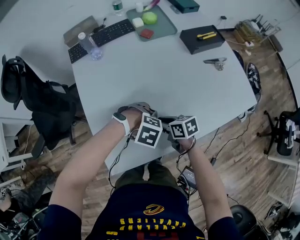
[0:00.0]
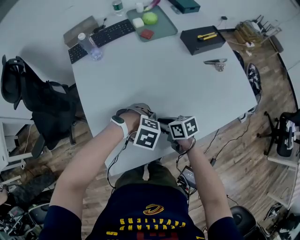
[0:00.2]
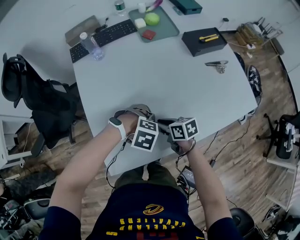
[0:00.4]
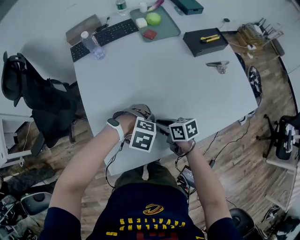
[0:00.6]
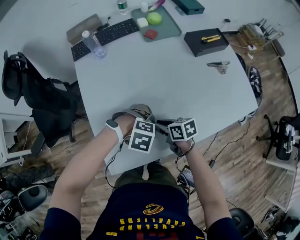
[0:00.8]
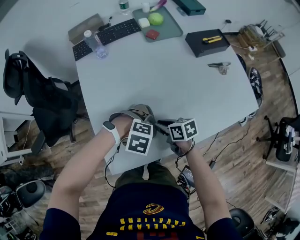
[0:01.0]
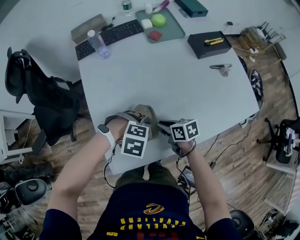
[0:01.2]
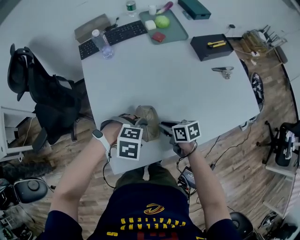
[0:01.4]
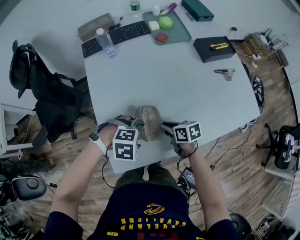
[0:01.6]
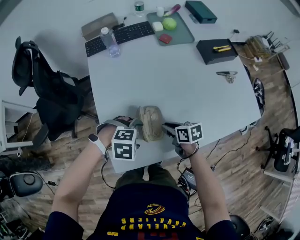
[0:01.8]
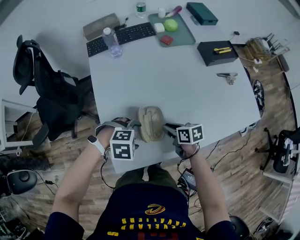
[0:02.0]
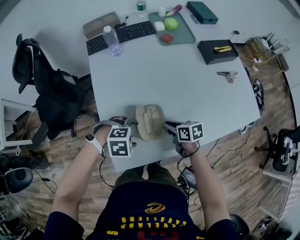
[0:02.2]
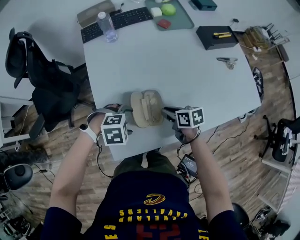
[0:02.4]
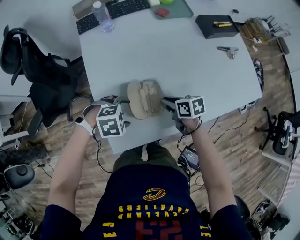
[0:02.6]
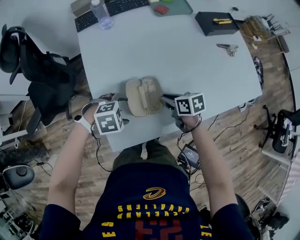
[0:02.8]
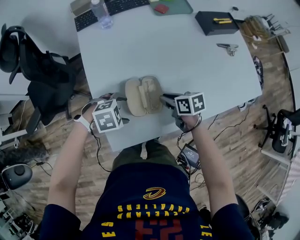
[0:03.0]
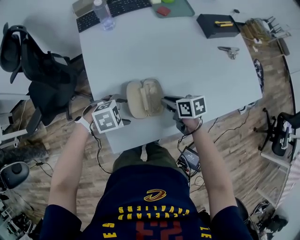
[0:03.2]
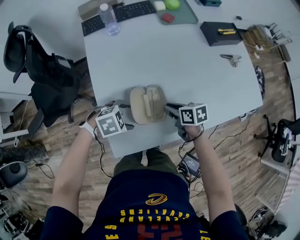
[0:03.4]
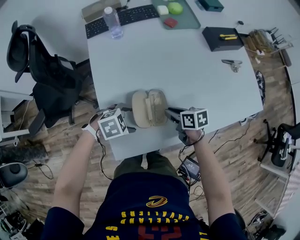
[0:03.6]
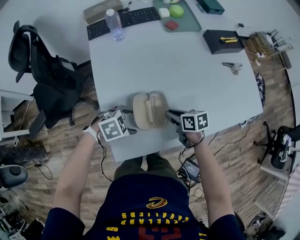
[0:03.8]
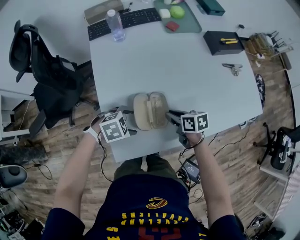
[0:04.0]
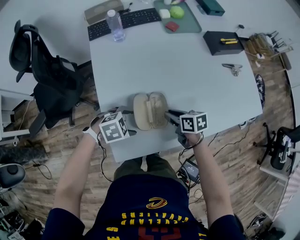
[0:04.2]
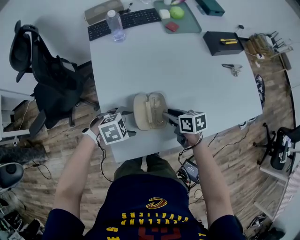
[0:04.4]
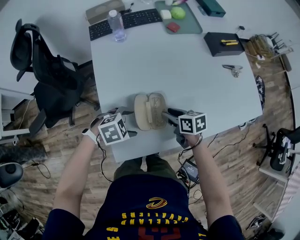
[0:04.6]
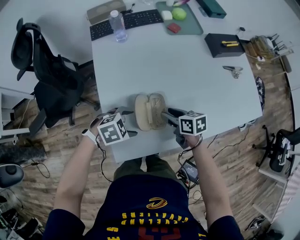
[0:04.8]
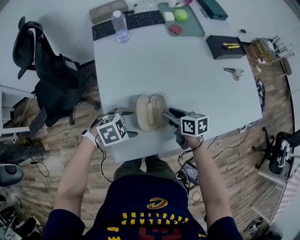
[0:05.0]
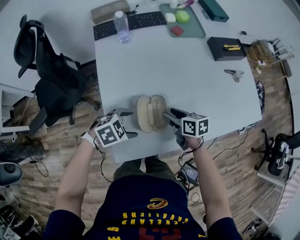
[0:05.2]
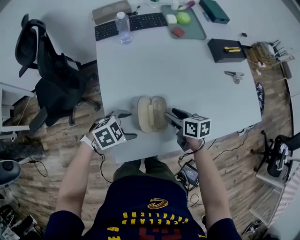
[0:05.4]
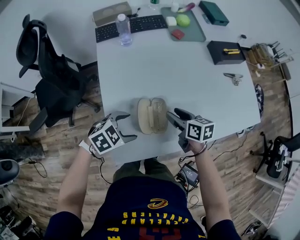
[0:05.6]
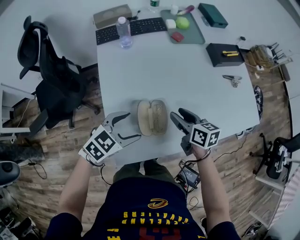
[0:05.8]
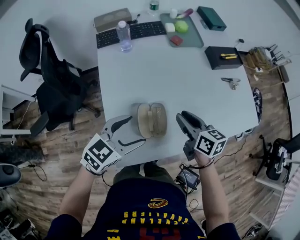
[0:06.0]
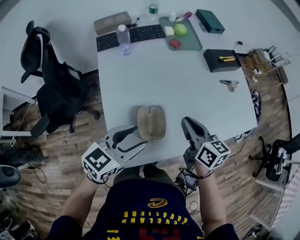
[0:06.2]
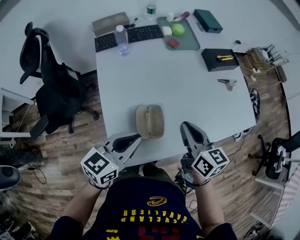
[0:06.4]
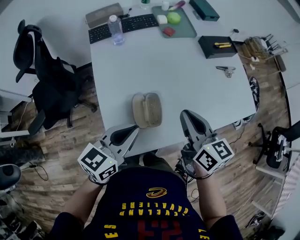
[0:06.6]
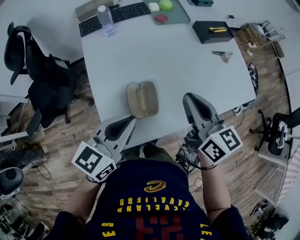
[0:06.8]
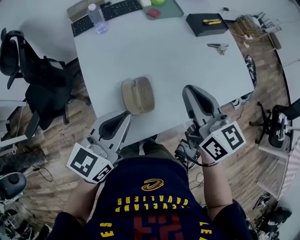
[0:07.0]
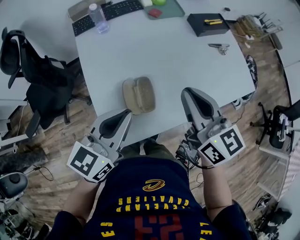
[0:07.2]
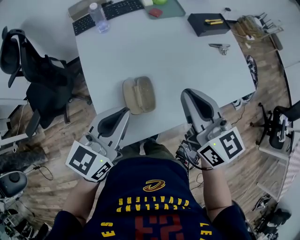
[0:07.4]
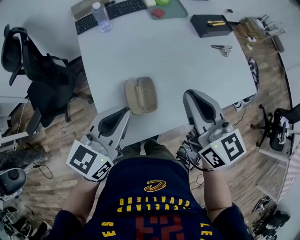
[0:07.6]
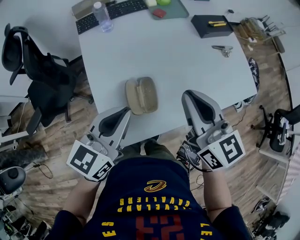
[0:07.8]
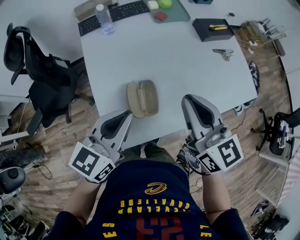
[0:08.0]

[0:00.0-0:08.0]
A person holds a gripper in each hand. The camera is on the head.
0.0 to 1.6 s: The left gripper ends up roughly 10 cm from where it was, and rotates roughly 20 degrees.
1.6 to 3.2 s: The left gripper moves approximately 10 cm, and turns by approximately 20 degrees.
3.2 to 4.8 s: The right gripper opens up.
4.8 to 6.4 s: The two grippers go roughly 20 cm upward. The left gripper angles its fingers upward, by approximately 50 degrees, and closes, while the right gripper turns by approximately 30 degrees, and closes.
6.4 to 8.0 s: The right gripper travels upward by approximately 10 cm, and rotates some 20 degrees.

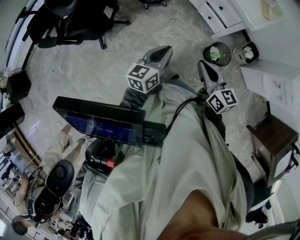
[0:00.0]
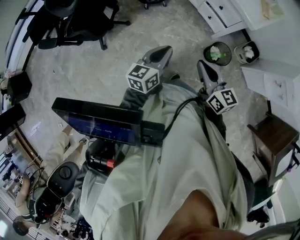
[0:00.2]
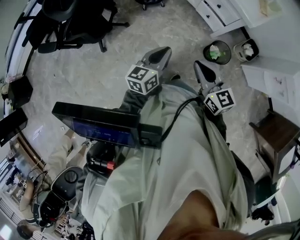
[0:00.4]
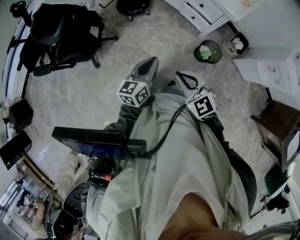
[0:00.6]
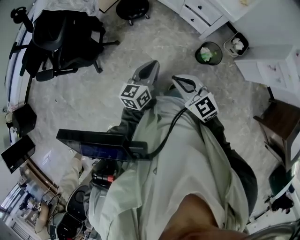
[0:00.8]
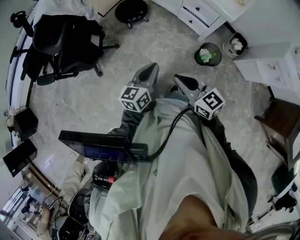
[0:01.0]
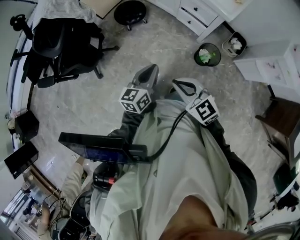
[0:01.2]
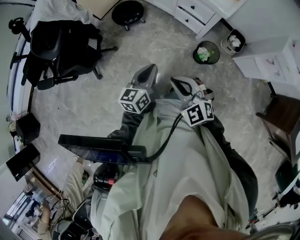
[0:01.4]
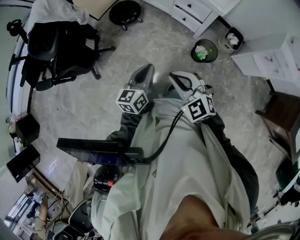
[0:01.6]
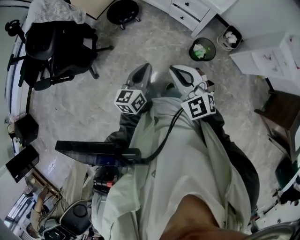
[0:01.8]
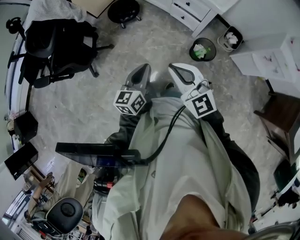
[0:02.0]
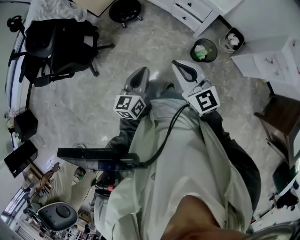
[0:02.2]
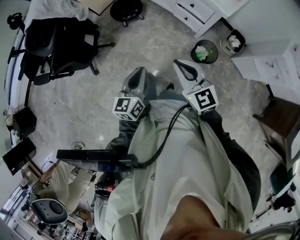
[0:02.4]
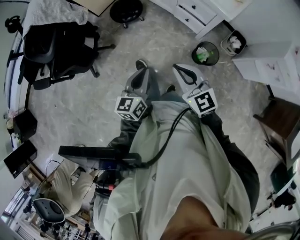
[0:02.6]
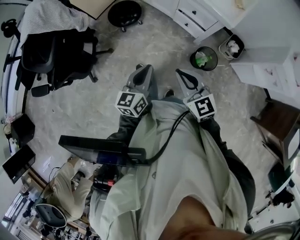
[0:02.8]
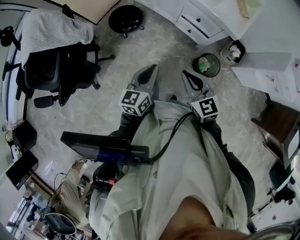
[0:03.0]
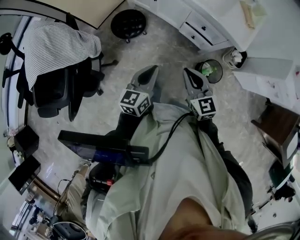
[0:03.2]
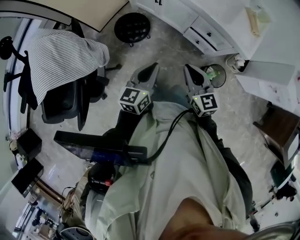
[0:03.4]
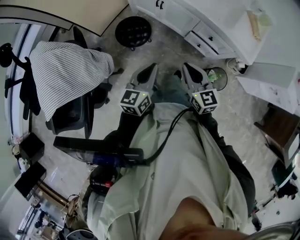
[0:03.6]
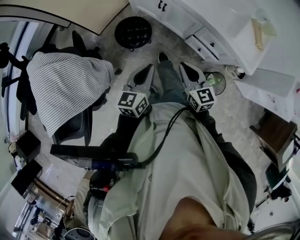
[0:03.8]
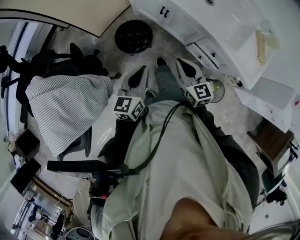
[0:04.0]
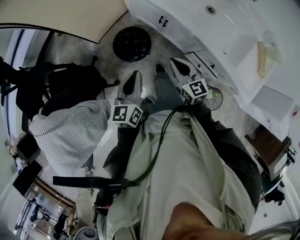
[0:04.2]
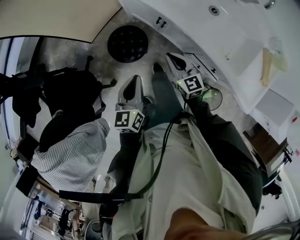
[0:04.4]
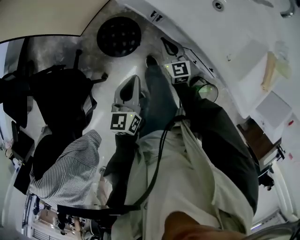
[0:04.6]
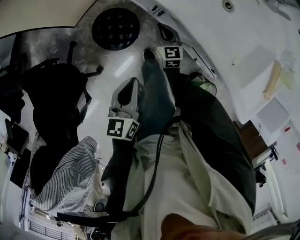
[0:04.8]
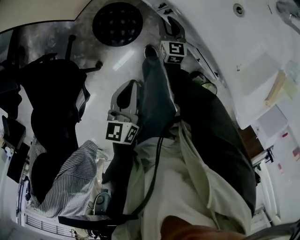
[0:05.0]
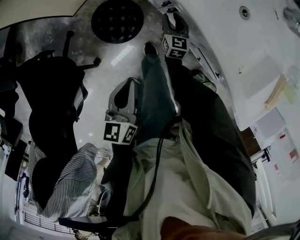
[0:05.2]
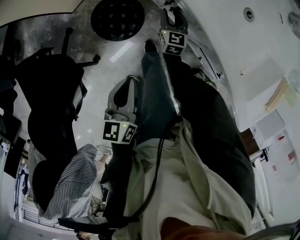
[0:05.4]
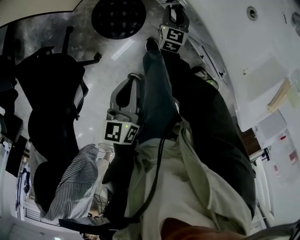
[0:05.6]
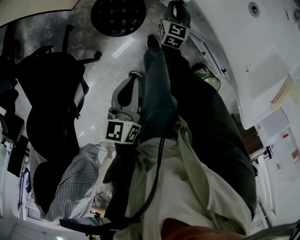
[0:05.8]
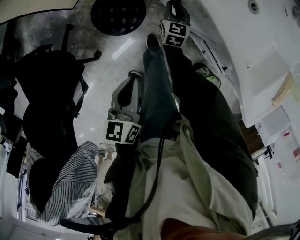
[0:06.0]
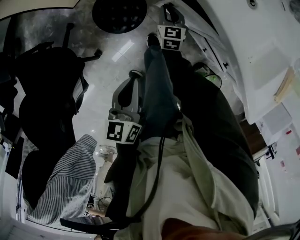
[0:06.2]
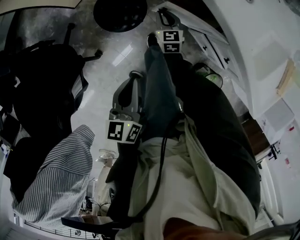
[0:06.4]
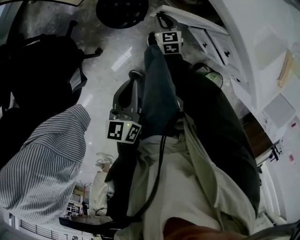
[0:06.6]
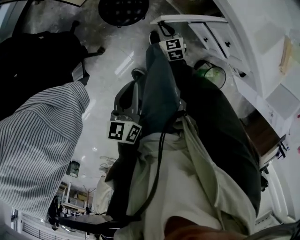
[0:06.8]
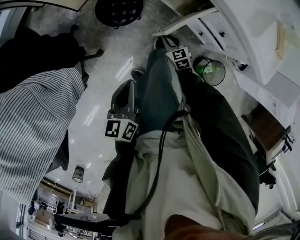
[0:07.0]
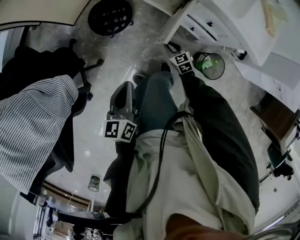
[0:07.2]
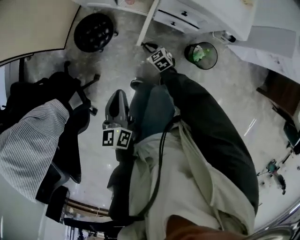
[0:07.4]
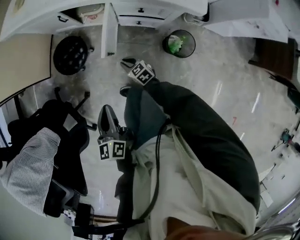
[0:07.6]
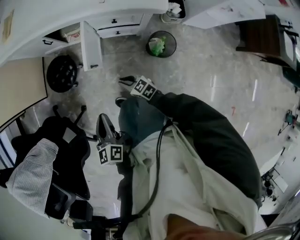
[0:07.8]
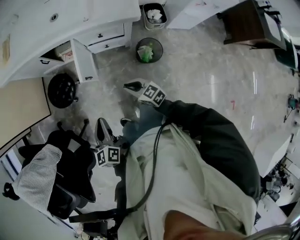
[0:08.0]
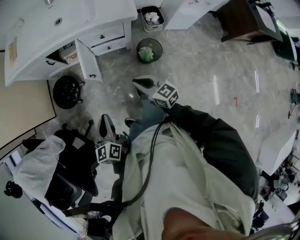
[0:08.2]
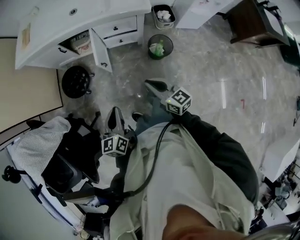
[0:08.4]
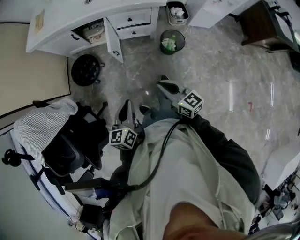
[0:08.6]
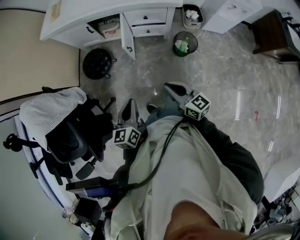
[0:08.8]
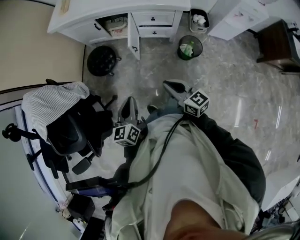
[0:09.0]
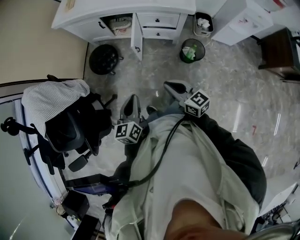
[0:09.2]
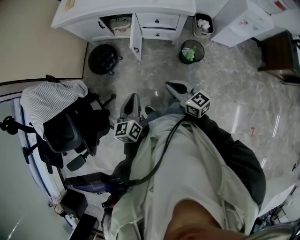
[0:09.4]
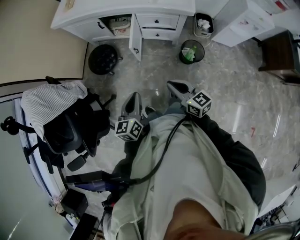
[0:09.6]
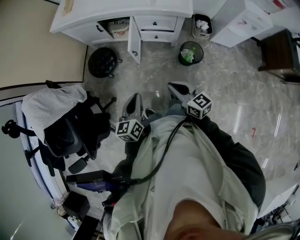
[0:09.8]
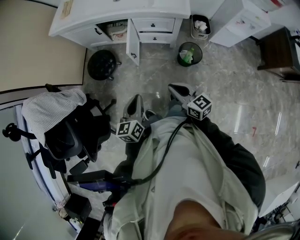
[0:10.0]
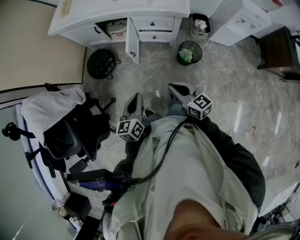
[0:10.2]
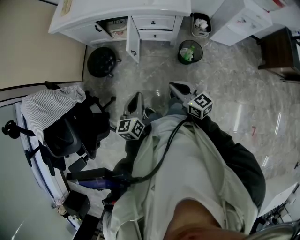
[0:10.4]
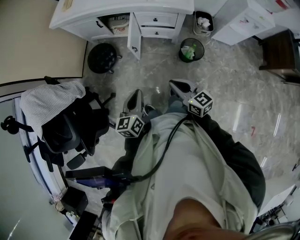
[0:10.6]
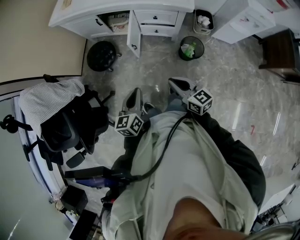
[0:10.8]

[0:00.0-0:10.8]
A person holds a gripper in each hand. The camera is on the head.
0.0 to 1.6 s: The right gripper heads to the left, covering approximately 5 cm, and twists some 50 degrees counterclockwise, seen from behind.
1.6 to 3.0 s: Both grippers travel together forward, about 15 cm. The right gripper turns by roughly 30 degrees.
3.0 to 4.6 s: Both grippers are carried forward, about 50 cm. The right gripper goes roughly 25 cm downward.
4.6 to 6.2 s: The left gripper travels backward by about 5 cm. Meanwhile the right gripper is displaced downward by roughly 15 cm, and opens, then closes once more.
6.2 to 7.8 s: The left gripper moves backward, approximately 30 cm, and changes its angle by roughly 20 degrees, while the right gripper moves backward, about 50 cm, and swivels about 20 degrees.
7.8 to 9.2 s: The left gripper shifts roughly 15 cm backward and upward. The right gripper shifts some 30 cm upward and backward, and changes its angle by roughly 20 degrees.
9.2 to 10.8 s: The right gripper moves approximately 5 cm, while the left gripper moves approximately 5 cm.

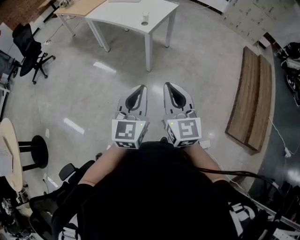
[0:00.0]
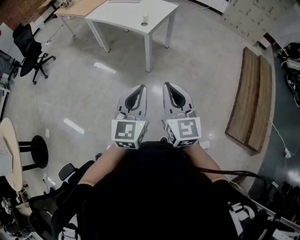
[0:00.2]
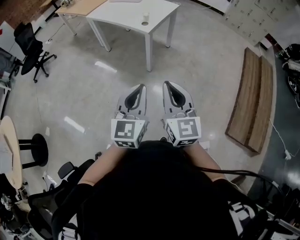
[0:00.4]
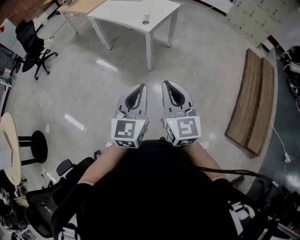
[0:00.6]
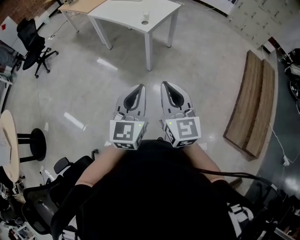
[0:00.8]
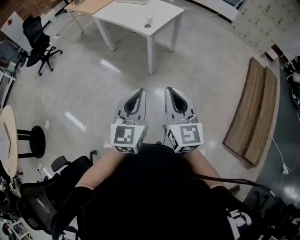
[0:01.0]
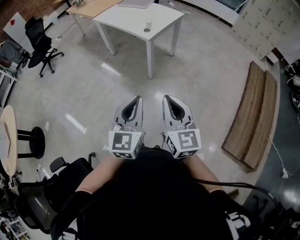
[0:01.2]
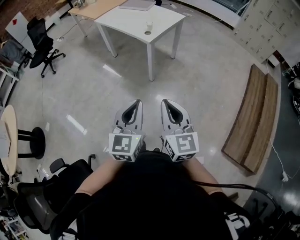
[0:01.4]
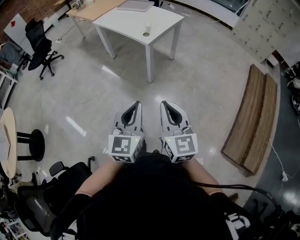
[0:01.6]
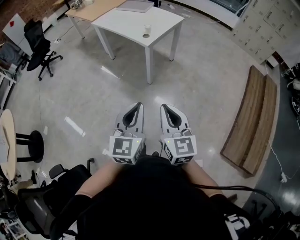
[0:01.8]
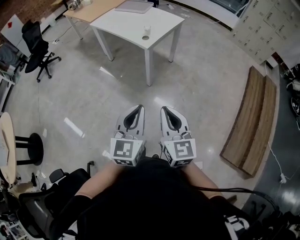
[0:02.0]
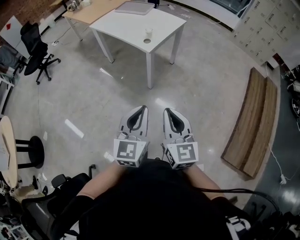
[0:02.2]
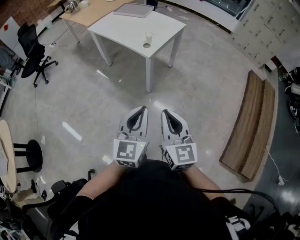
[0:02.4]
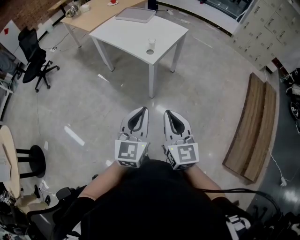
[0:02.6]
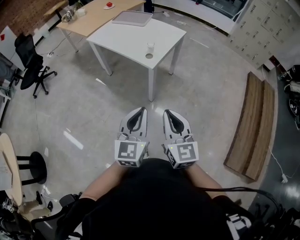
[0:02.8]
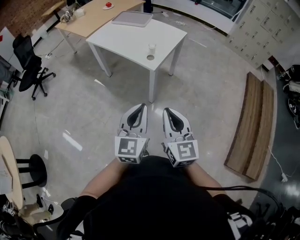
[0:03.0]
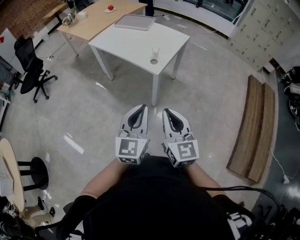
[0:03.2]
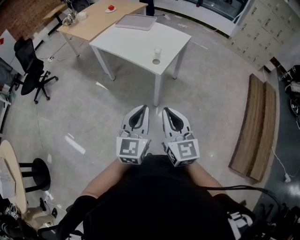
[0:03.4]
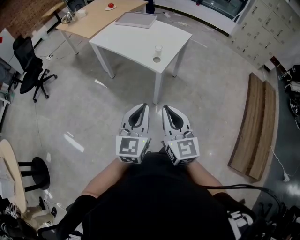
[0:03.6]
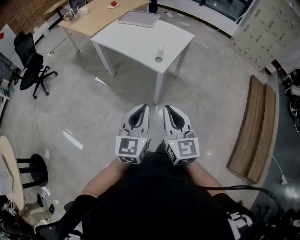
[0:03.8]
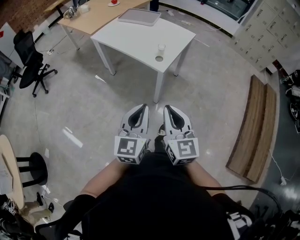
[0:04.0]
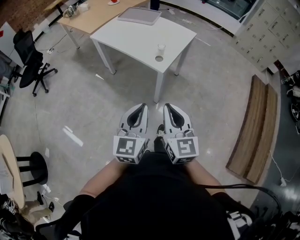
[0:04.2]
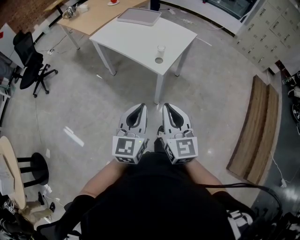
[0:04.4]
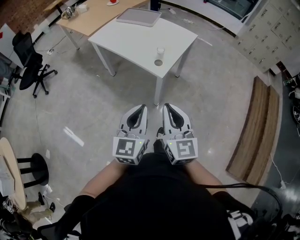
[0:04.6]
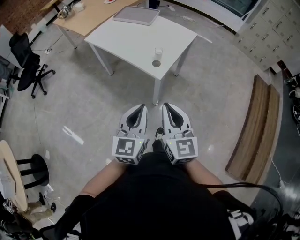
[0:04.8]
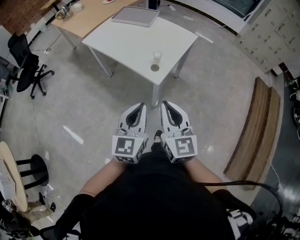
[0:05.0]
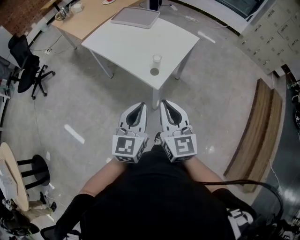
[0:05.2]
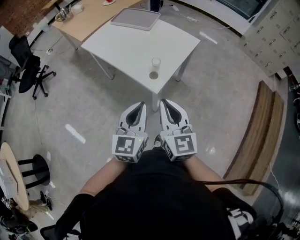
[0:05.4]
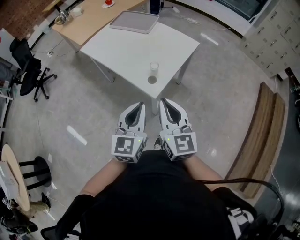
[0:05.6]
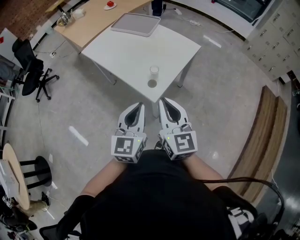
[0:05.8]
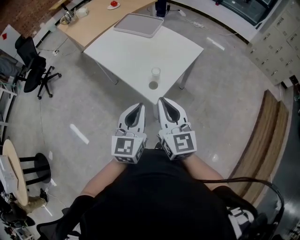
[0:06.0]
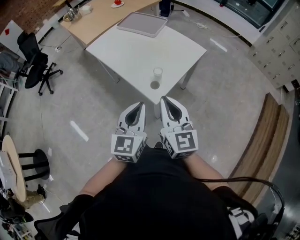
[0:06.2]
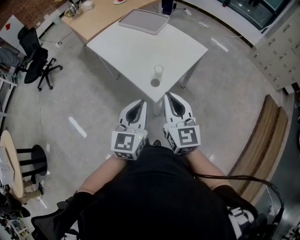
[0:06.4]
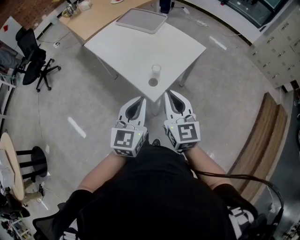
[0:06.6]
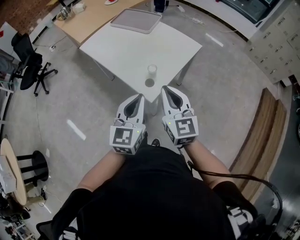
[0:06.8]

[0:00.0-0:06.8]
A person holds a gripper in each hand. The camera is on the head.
0.0 to 1.4 s: The two grippers go about 10 cm to the right.
1.4 to 2.8 s: The two grippers go roughly 25 cm forward.
2.8 to 4.0 s: Both grippers travel together to the left and forward, roughly 10 cm.
4.0 to 5.4 s: The two grippers go approximately 25 cm forward.
5.4 to 6.8 s: The left gripper goes about 10 cm forward. The right gripper shifts about 15 cm forward and to the right.
